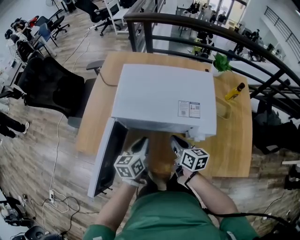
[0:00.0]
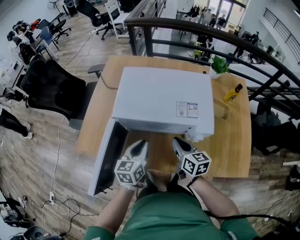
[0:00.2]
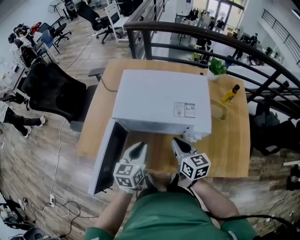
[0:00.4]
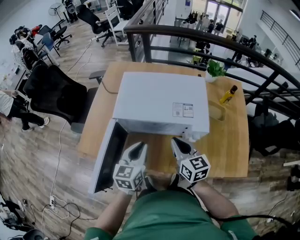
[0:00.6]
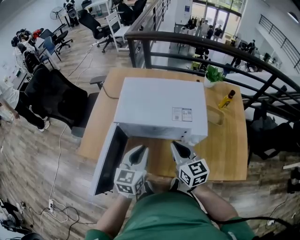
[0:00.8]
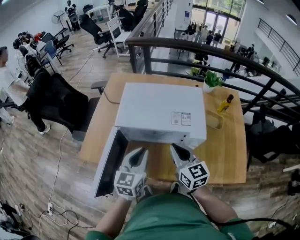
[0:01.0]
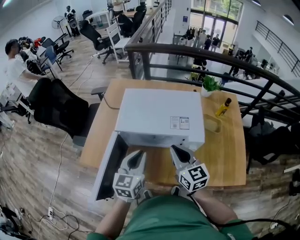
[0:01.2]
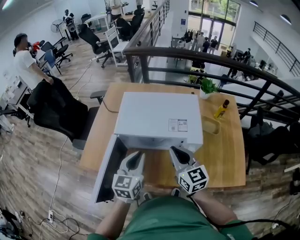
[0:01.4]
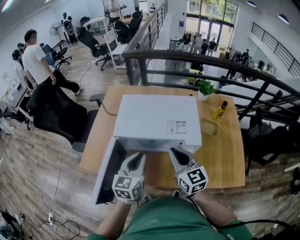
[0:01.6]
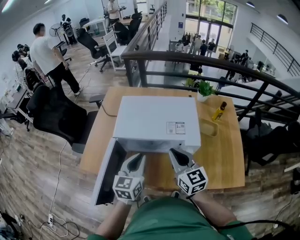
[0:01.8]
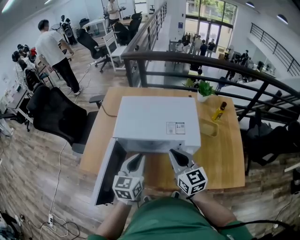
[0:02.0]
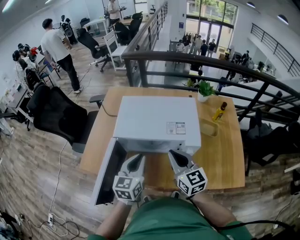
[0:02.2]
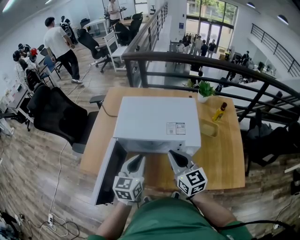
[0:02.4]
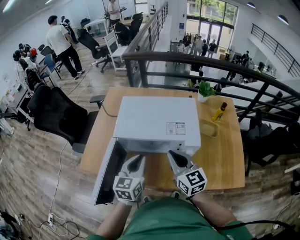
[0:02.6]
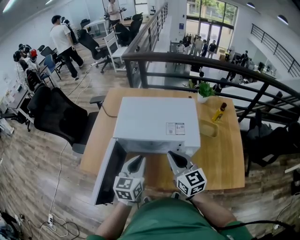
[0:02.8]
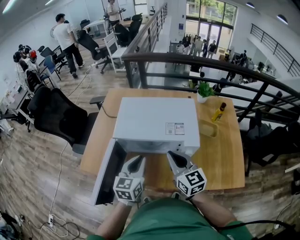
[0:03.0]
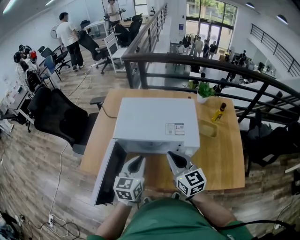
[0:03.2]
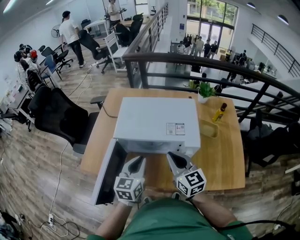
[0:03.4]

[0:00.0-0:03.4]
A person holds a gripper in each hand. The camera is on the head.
0:00.0 to 0:01.6: The grippers both shift upward by approximately 15 cm. The left gripper changes its angle by about 20 degrees, while the right gripper rotates about 40 degrees.
0:01.6 to 0:03.4: The two grippers keep their place.

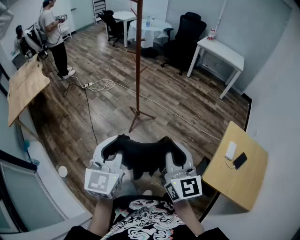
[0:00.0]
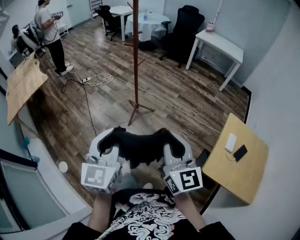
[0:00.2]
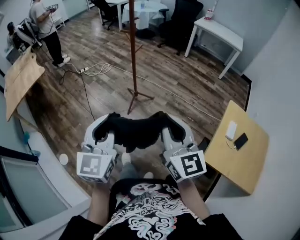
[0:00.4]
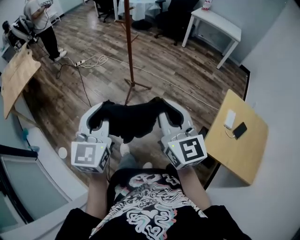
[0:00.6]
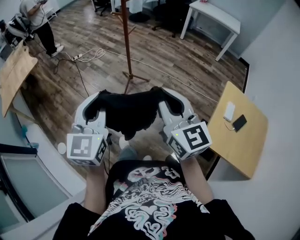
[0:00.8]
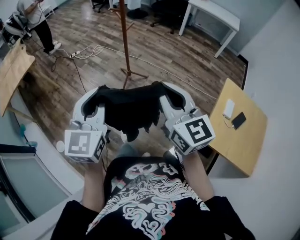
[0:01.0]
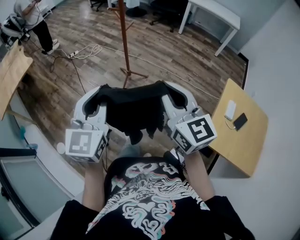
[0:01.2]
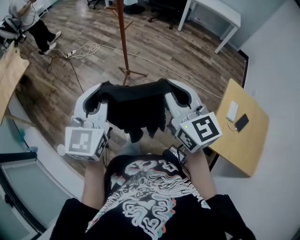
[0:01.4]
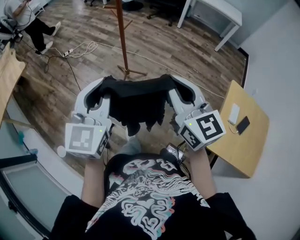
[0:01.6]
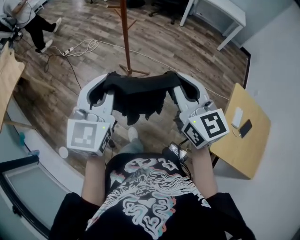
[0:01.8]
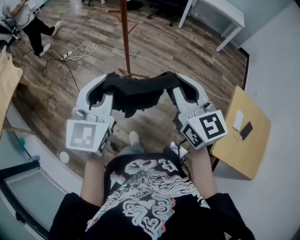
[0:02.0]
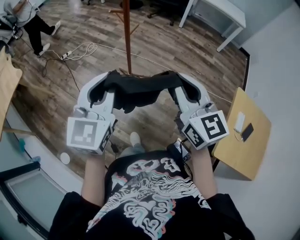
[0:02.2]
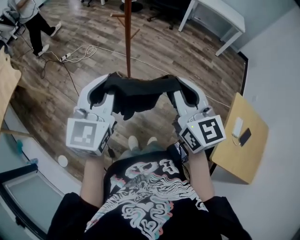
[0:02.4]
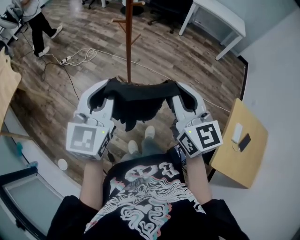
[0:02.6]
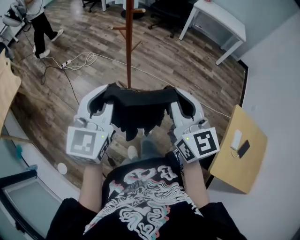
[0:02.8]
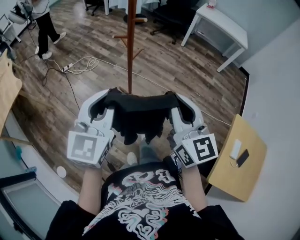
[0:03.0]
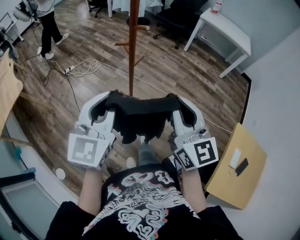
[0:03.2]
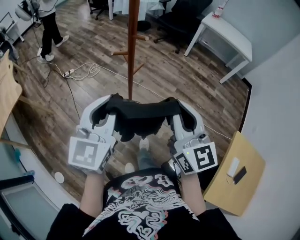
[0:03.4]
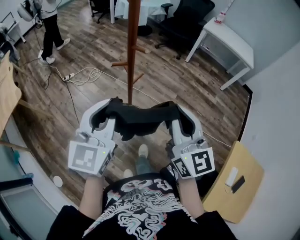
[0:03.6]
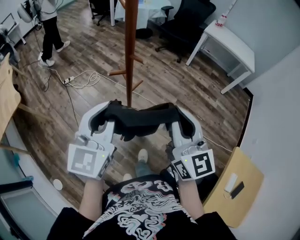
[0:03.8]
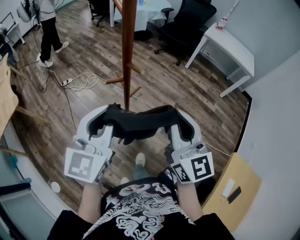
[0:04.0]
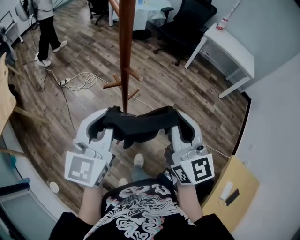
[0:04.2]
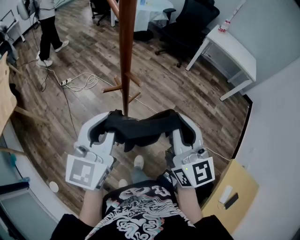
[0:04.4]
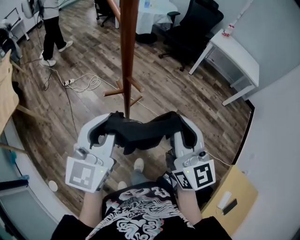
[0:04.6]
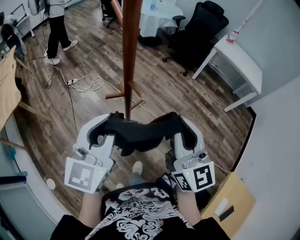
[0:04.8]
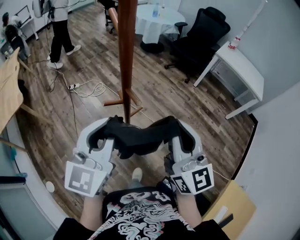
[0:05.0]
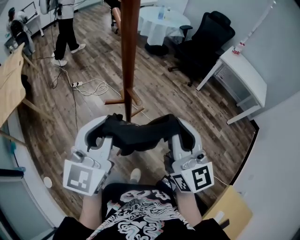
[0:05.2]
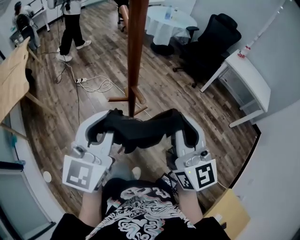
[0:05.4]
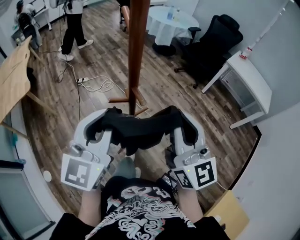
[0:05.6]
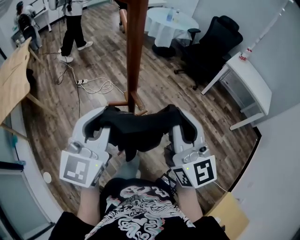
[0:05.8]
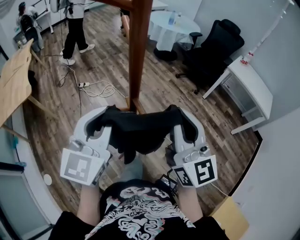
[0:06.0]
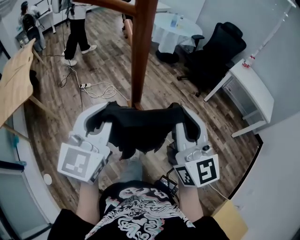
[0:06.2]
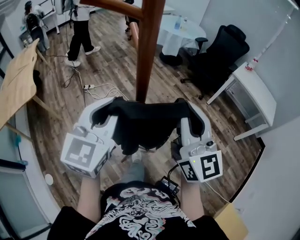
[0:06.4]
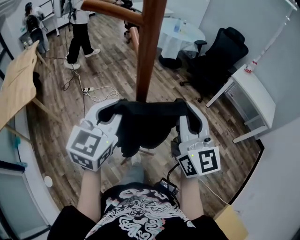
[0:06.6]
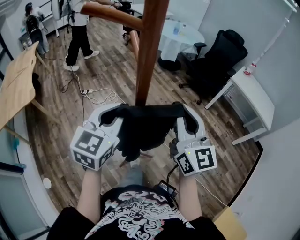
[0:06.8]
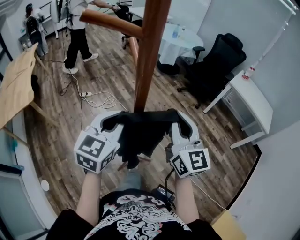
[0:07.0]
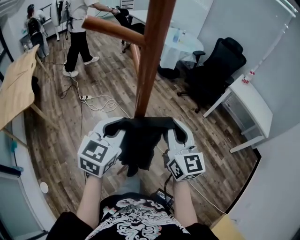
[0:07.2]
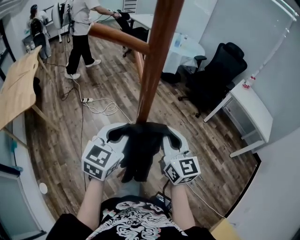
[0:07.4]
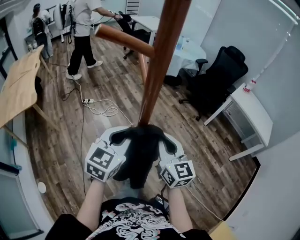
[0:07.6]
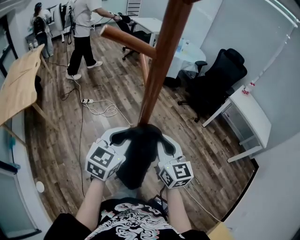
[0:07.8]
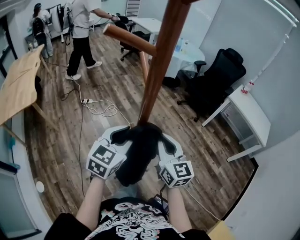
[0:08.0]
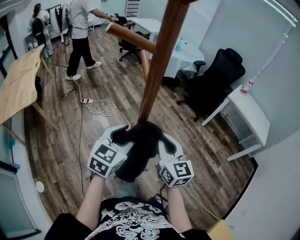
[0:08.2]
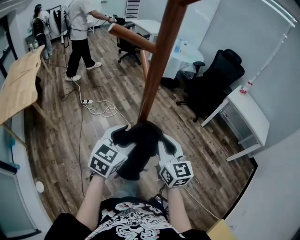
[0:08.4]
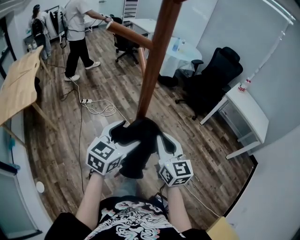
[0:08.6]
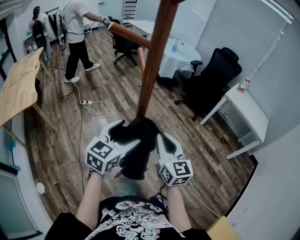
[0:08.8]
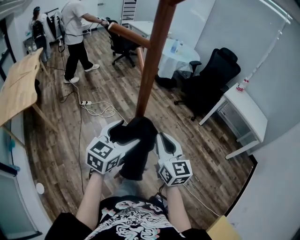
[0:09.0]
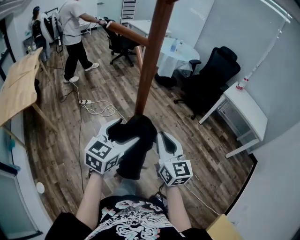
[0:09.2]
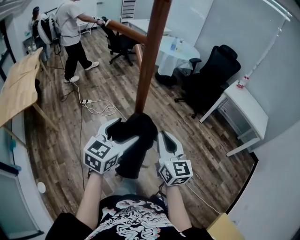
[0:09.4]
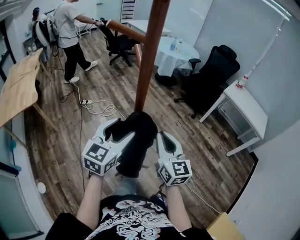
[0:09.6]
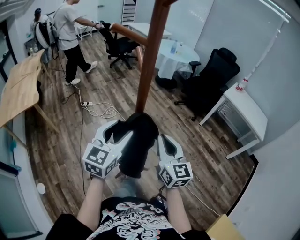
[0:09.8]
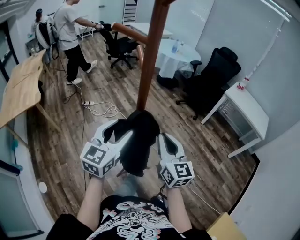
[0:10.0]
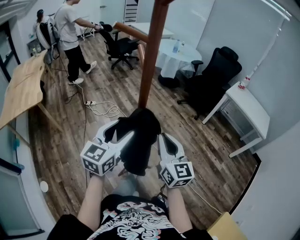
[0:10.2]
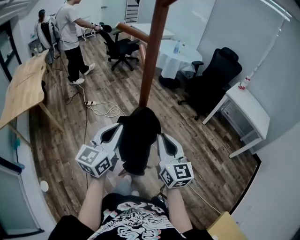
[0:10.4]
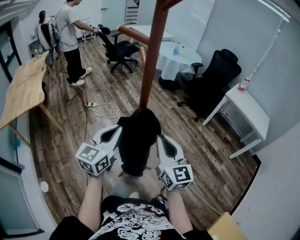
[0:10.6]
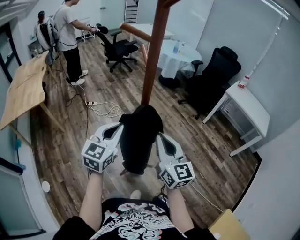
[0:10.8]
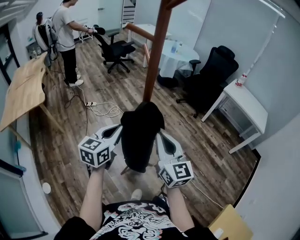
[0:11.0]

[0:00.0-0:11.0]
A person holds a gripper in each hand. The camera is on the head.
0:00.0 to 0:01.6: The grippers both shift forward by roughly 15 cm.
0:01.6 to 0:03.2: The two grippers go roughly 25 cm forward.
0:03.2 to 0:04.8: The two grippers go some 20 cm forward.
0:04.8 to 0:06.2: The right gripper shifts about 10 cm forward and upward, while the left gripper heads forward, covering roughly 10 cm.
0:06.2 to 0:07.8: Both grippers travel together downward and forward, roughly 15 cm.
0:07.8 to 0:09.4: The grippers both shift backward by some 5 cm. The left gripper opens its fingers.
0:09.4 to 0:11.0: The right gripper goes about 10 cm backward. Meanwhile the left gripper heads to the left and backward, covering about 10 cm, and closes up.

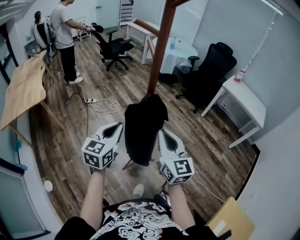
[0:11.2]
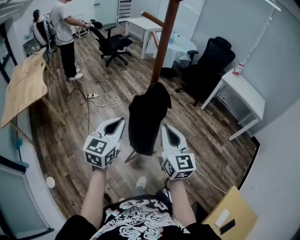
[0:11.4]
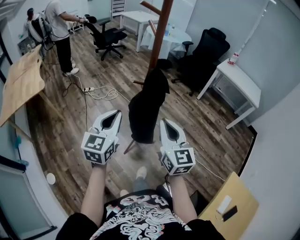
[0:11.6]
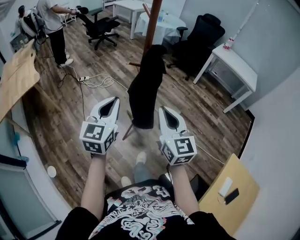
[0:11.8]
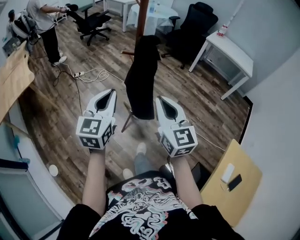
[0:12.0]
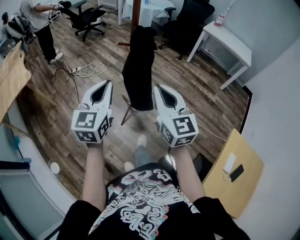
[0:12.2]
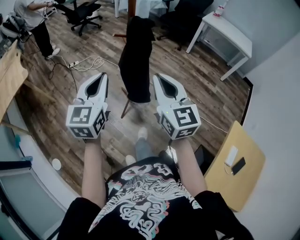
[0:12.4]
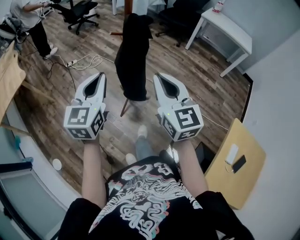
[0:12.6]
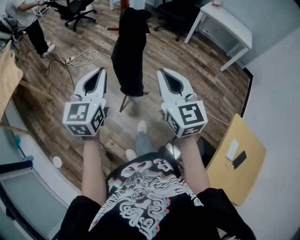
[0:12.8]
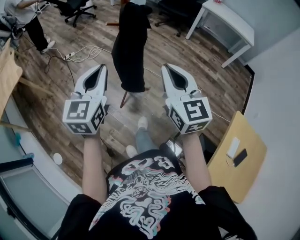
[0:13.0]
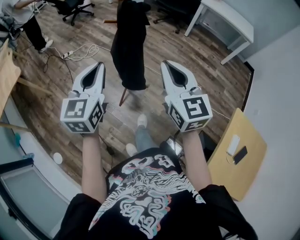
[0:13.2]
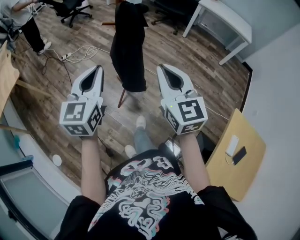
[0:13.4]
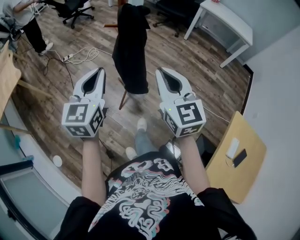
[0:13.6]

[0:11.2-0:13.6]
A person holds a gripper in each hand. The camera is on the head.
0:11.2 to 0:12.4: The two grippers go approximately 15 cm backward.
0:12.4 to 0:13.6: The grippers move only a little.

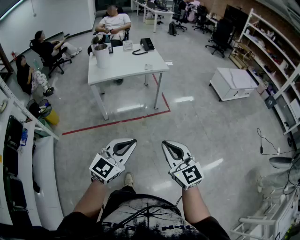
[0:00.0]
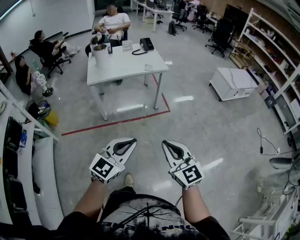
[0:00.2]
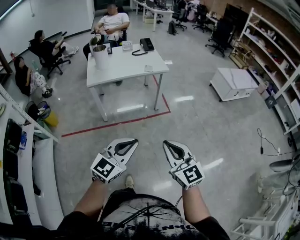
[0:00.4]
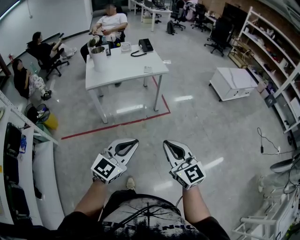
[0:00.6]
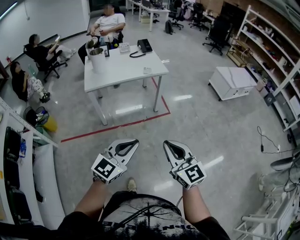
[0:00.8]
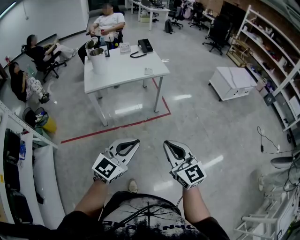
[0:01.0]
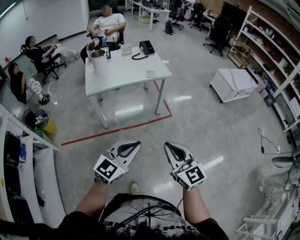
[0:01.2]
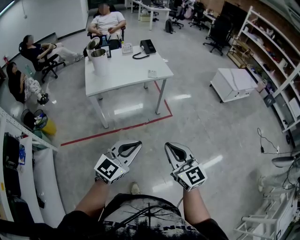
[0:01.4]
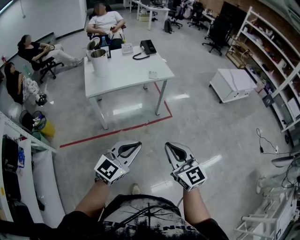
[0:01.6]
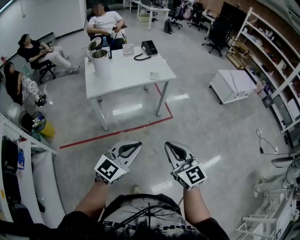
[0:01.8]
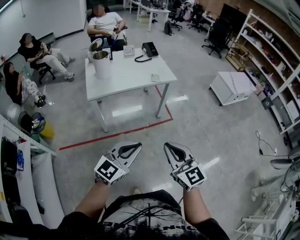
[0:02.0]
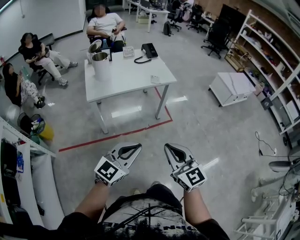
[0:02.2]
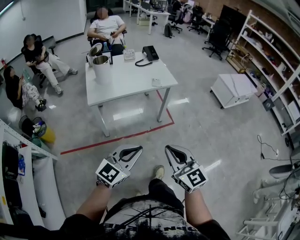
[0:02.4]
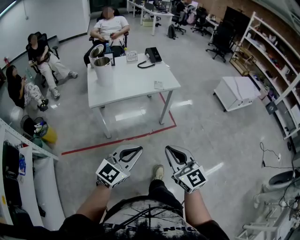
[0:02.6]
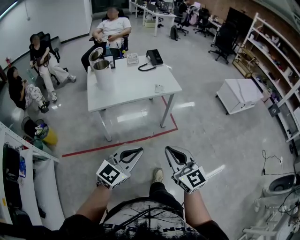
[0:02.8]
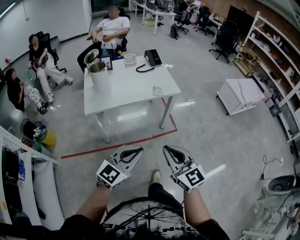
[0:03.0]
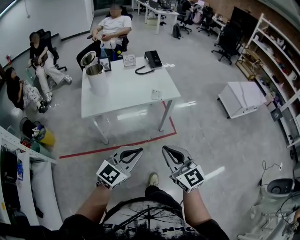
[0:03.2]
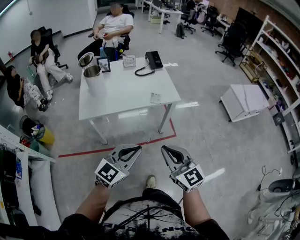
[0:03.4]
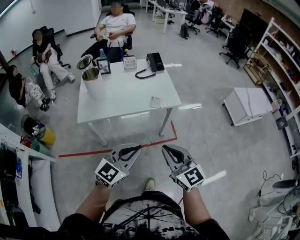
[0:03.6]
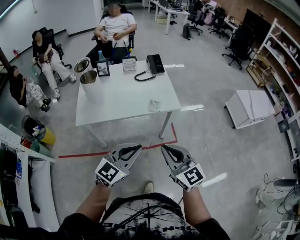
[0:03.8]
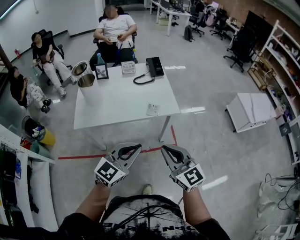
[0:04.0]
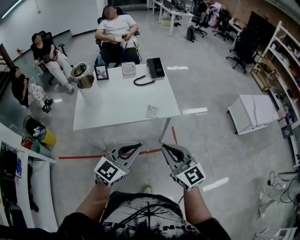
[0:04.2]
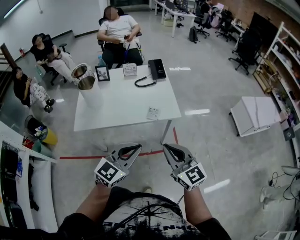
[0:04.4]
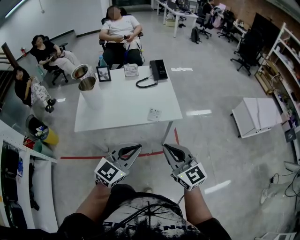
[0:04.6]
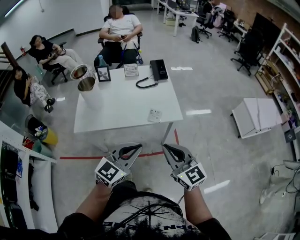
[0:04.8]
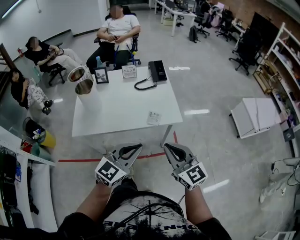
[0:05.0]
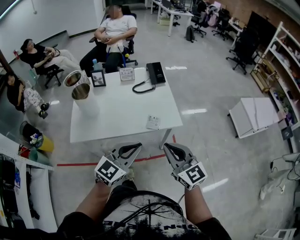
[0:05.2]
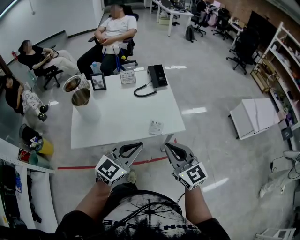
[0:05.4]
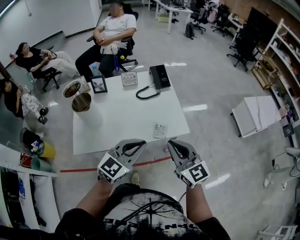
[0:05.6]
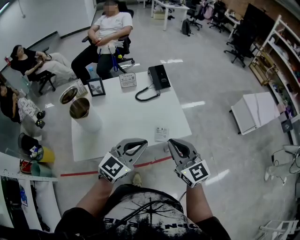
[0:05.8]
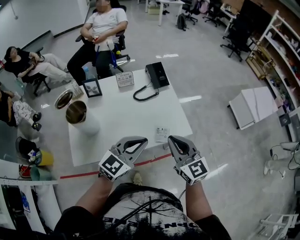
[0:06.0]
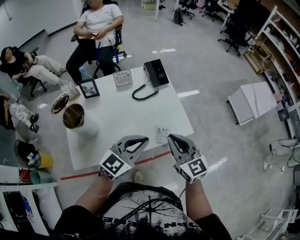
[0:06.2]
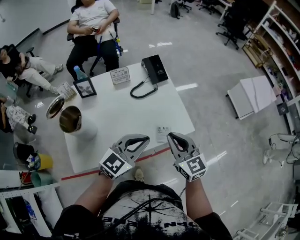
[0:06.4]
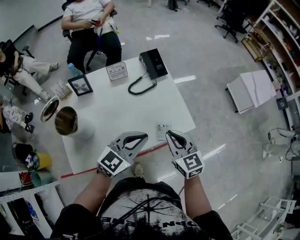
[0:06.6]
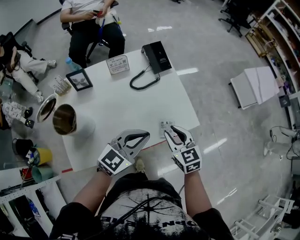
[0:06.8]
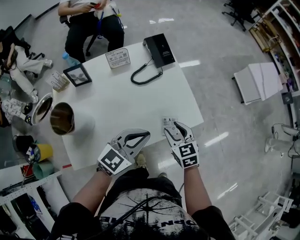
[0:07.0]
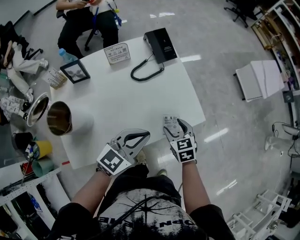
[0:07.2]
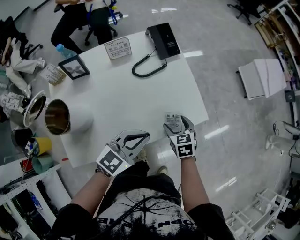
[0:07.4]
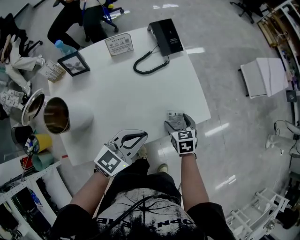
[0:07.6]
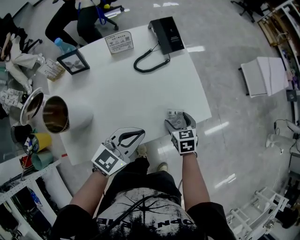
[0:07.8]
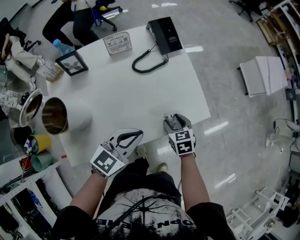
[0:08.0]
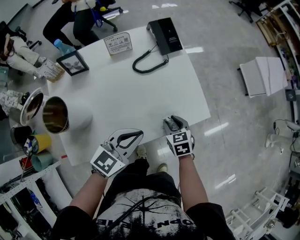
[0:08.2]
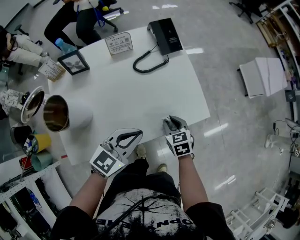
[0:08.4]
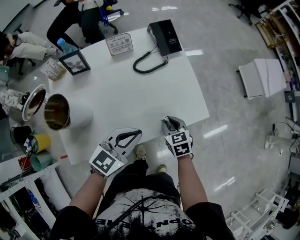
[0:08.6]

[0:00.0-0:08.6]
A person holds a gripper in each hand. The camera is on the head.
0:00.0 to 0:01.4: Both grippers move forward and to the left, approximately 15 cm.
0:01.4 to 0:02.8: The right gripper travels forward and to the left by about 15 cm. The left gripper shifts about 10 cm forward.
0:02.8 to 0:04.4: The left gripper heads forward and to the right, covering approximately 30 cm, while the right gripper heads forward, covering approximately 30 cm.
0:04.4 to 0:05.8: The two grippers go about 20 cm forward.
0:05.8 to 0:07.2: The right gripper heads downward and forward, covering about 25 cm, angles its fingers downward, by about 40 degrees, and opens; the left gripper travels downward and forward by roughly 10 cm.
0:07.2 to 0:08.6: The right gripper closes.
